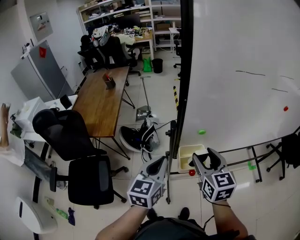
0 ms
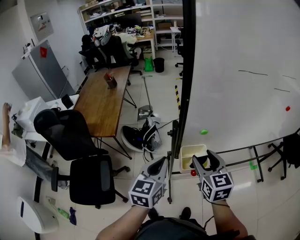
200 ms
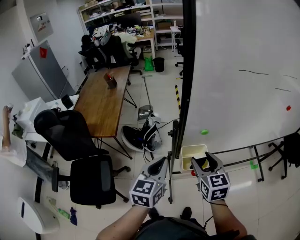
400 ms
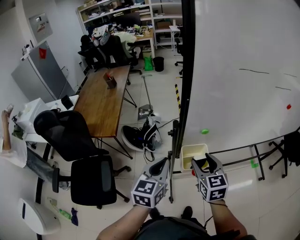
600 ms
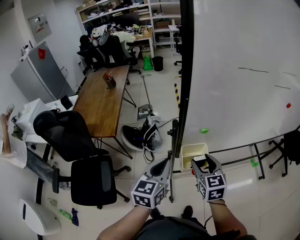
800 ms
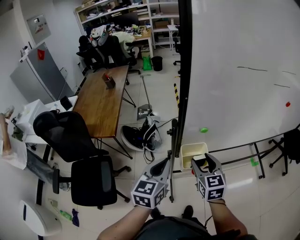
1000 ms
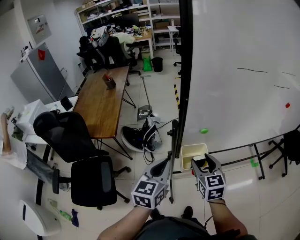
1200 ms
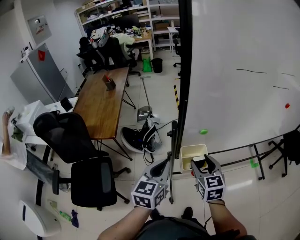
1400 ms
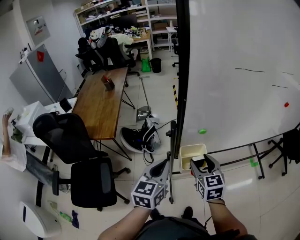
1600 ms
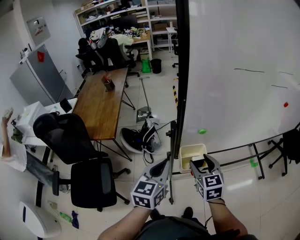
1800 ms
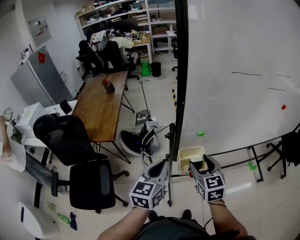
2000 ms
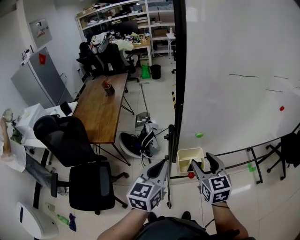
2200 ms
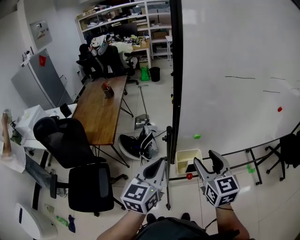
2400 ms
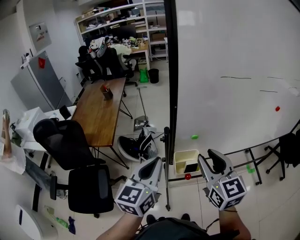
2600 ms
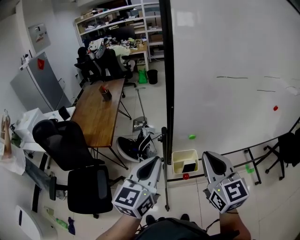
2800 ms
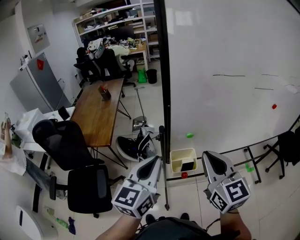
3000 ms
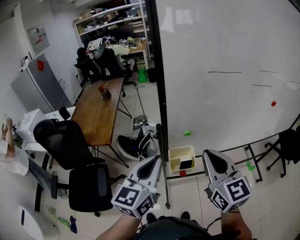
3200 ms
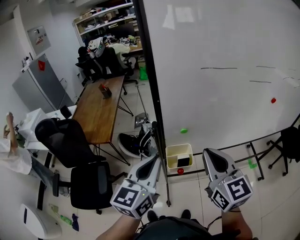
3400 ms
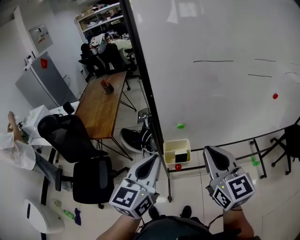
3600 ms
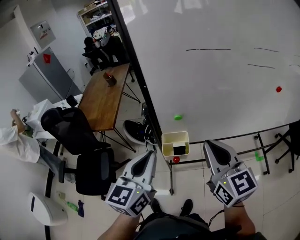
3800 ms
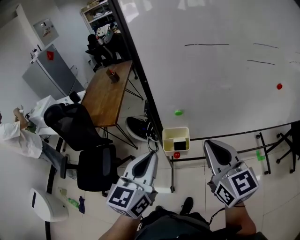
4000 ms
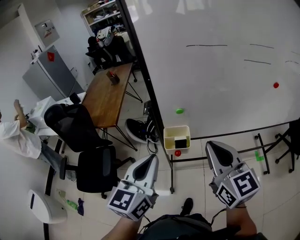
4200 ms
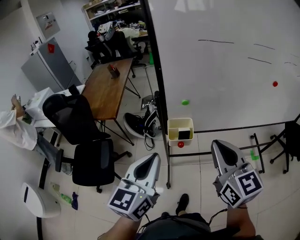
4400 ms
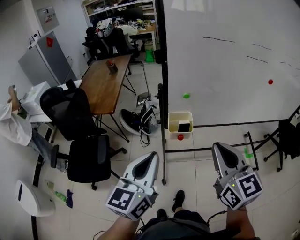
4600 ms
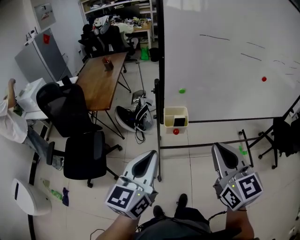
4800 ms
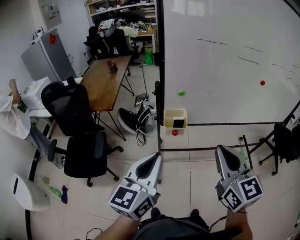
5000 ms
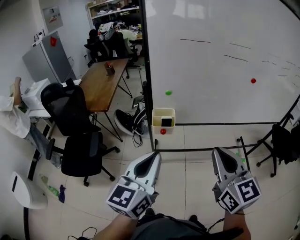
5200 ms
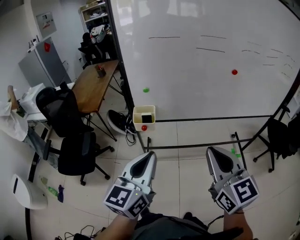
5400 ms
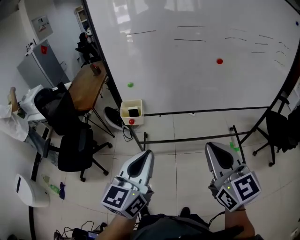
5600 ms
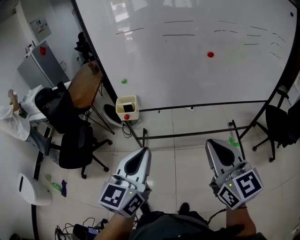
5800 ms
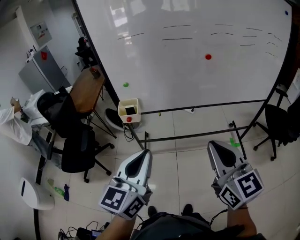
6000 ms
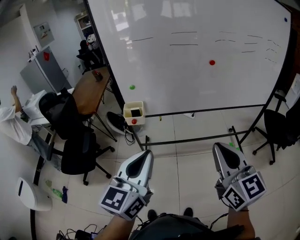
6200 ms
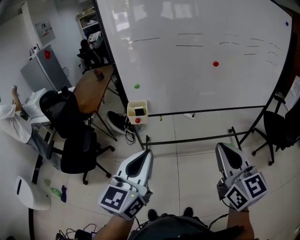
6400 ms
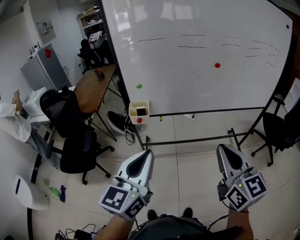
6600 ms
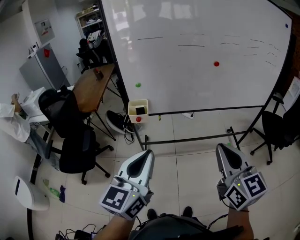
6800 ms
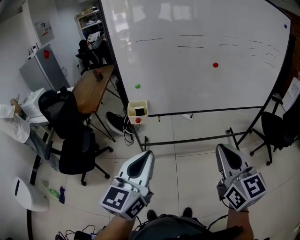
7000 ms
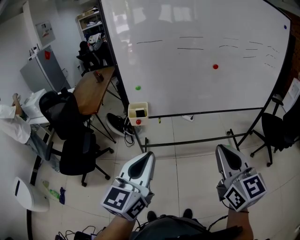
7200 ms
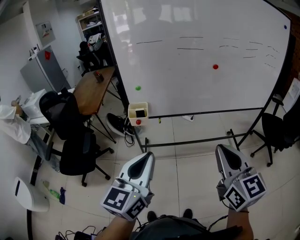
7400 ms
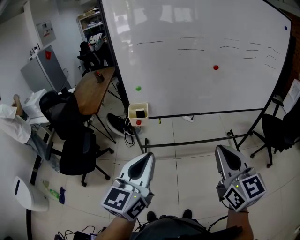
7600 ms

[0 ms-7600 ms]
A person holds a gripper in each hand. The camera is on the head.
0 ms to 1600 ms: The right gripper is displaced downward by about 10 cm.
1600 ms to 3000 ms: The left gripper heads upward, covering about 15 cm. The right gripper goes some 20 cm upward, swivels some 20 degrees, and closes its fingers.
3000 ms to 4600 ms: The left gripper shifts some 20 cm backward. The right gripper moves backward and to the right, approximately 20 cm.
4600 ms to 6000 ms: The two grippers travel together, to the right and backward, approximately 50 cm.
6000 ms to 7600 ms: The right gripper changes place by some 5 cm. Meanwhile the left gripper moves to the left, roughly 5 cm.

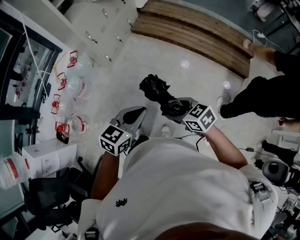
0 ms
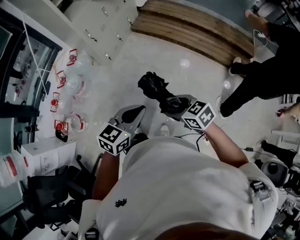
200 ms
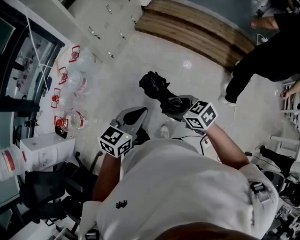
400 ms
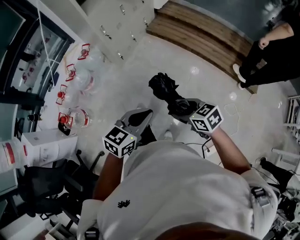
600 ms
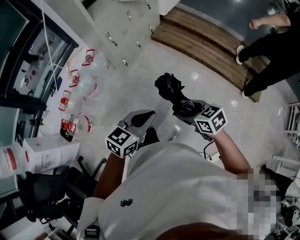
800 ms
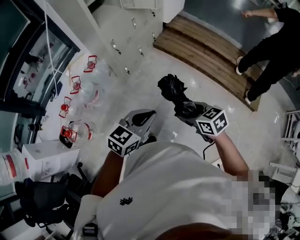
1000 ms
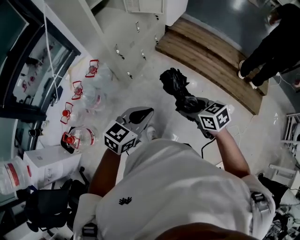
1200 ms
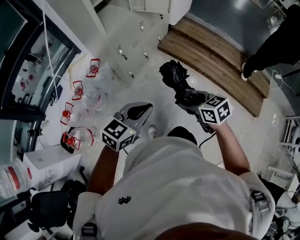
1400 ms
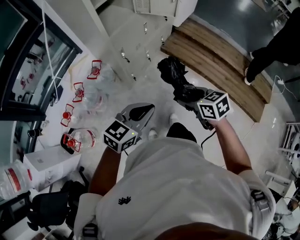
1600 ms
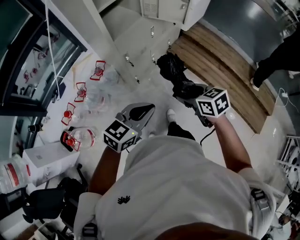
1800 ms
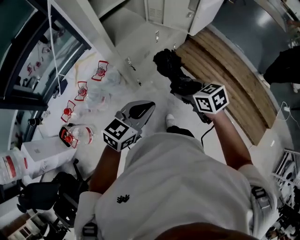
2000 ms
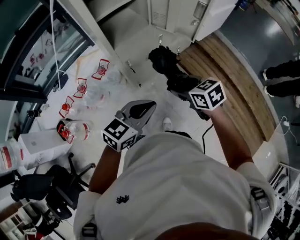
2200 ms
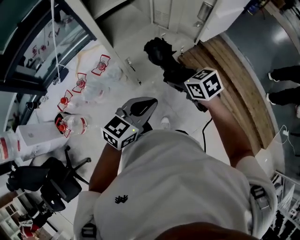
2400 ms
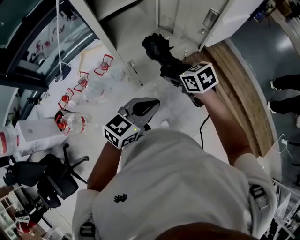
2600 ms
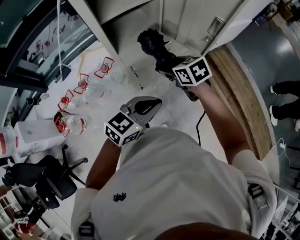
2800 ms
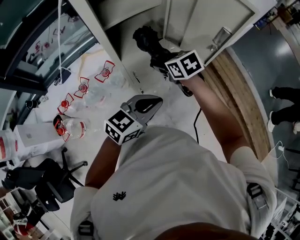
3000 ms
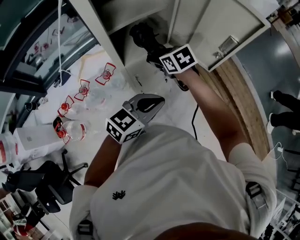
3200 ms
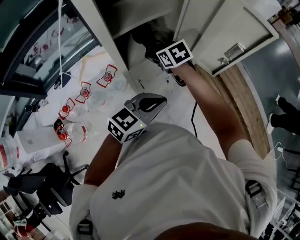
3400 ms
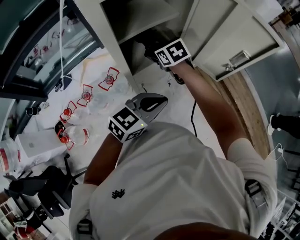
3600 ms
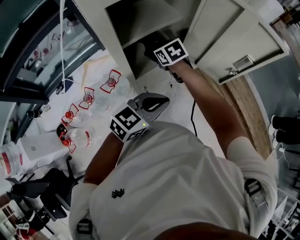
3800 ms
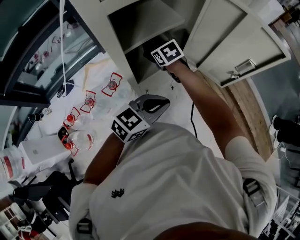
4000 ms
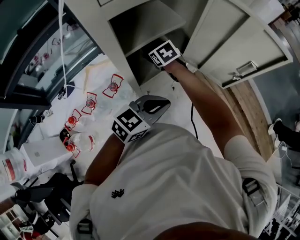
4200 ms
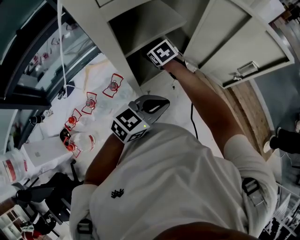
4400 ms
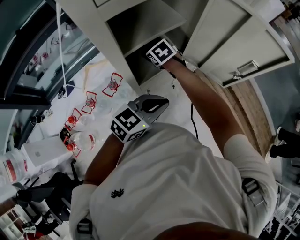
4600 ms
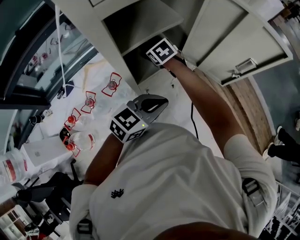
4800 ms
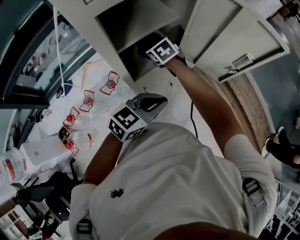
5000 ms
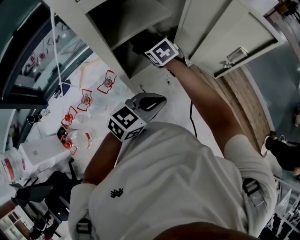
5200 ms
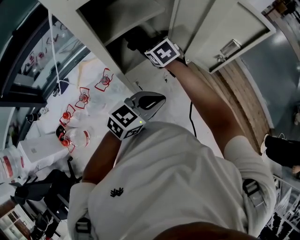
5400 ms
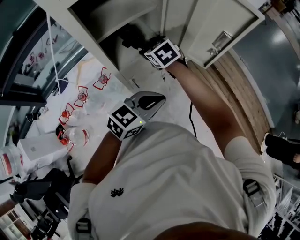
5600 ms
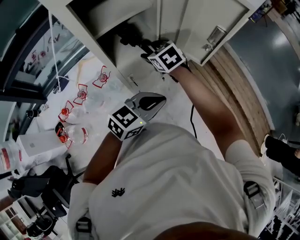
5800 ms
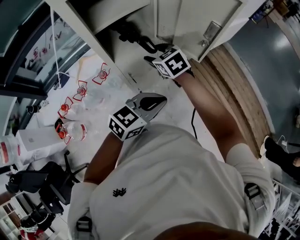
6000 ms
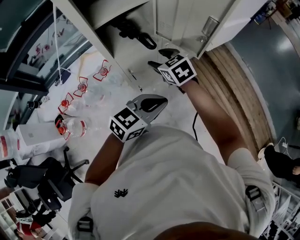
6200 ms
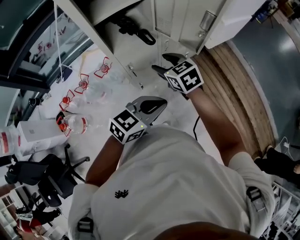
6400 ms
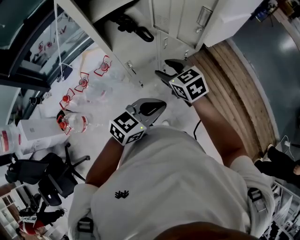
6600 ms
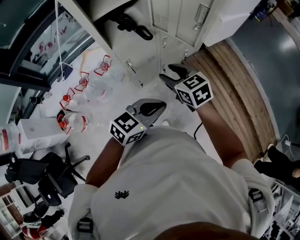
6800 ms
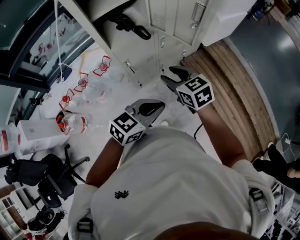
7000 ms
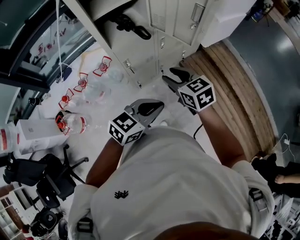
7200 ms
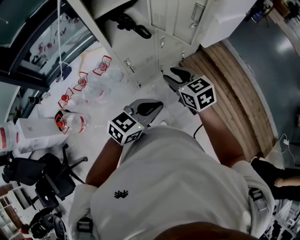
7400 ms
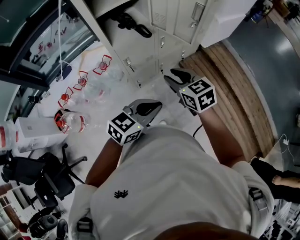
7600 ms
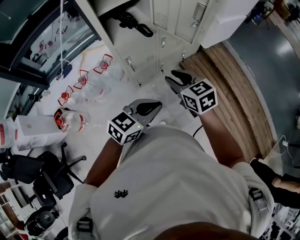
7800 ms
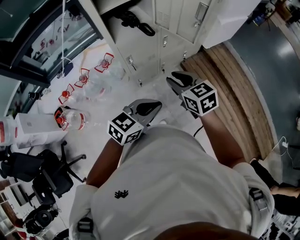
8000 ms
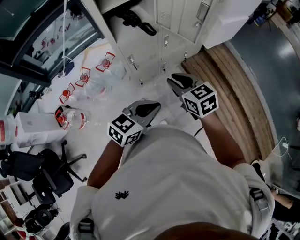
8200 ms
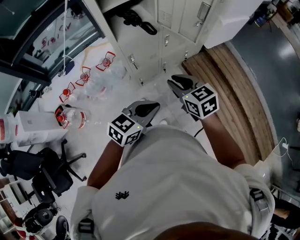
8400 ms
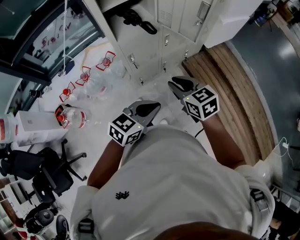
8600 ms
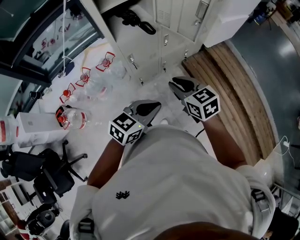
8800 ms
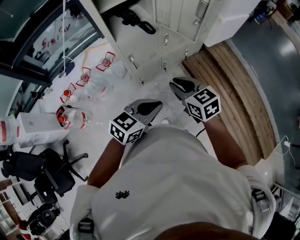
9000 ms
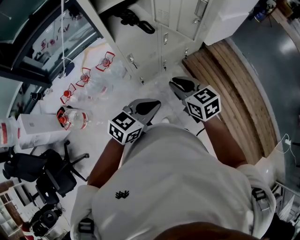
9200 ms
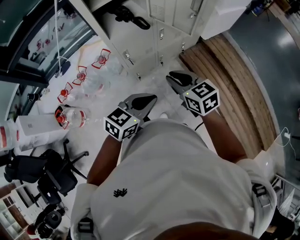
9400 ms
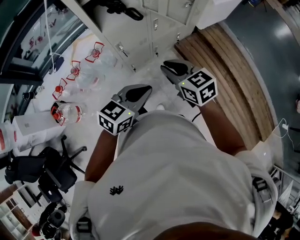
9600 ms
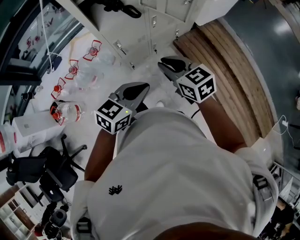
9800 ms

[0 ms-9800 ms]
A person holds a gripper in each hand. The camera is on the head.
0 ms to 1400 ms: The right gripper shifts roughly 35 cm forward. The left gripper heads forward and to the left, covering about 30 cm.
1400 ms to 2800 ms: The left gripper heads forward, covering roughly 30 cm; the right gripper travels forward by about 40 cm, and turns by some 30 degrees.
2800 ms to 4200 ms: The right gripper is displaced forward and to the left by about 30 cm; the left gripper goes roughly 15 cm forward and to the left.
4200 ms to 5600 ms: The right gripper goes some 15 cm to the right, backward and upward, while the left gripper goes about 10 cm to the right.
5600 ms to 7000 ms: The left gripper goes roughly 15 cm backward and to the right. Meanwhile the right gripper shifts roughly 30 cm backward and to the right.
7000 ms to 8400 ms: The left gripper shifts by some 5 cm. Meanwhile the right gripper is displaced backward by roughly 5 cm, and closes its fingers.
8400 ms to 9800 ms: The grippers move only a little.

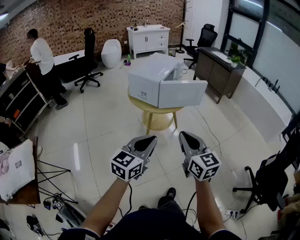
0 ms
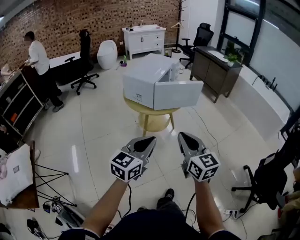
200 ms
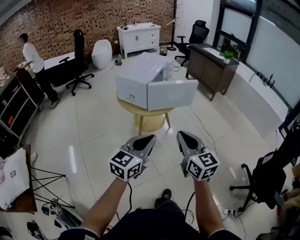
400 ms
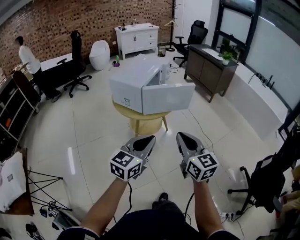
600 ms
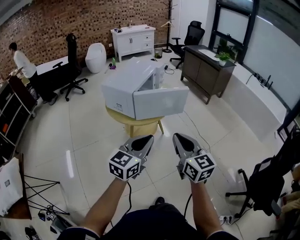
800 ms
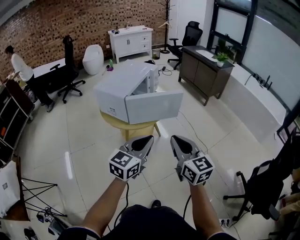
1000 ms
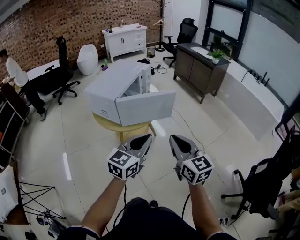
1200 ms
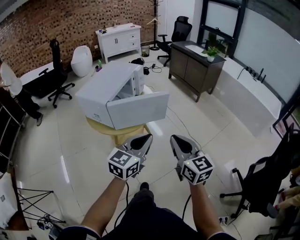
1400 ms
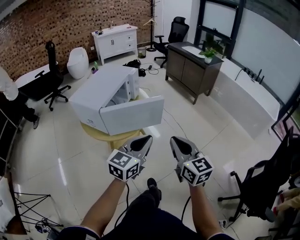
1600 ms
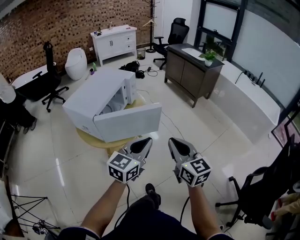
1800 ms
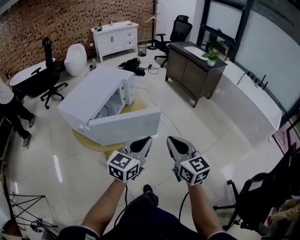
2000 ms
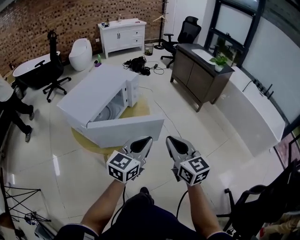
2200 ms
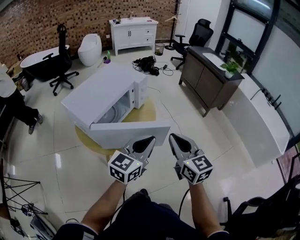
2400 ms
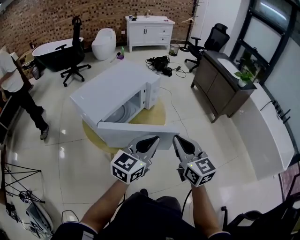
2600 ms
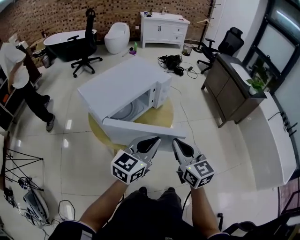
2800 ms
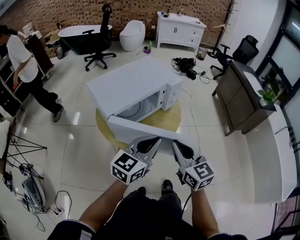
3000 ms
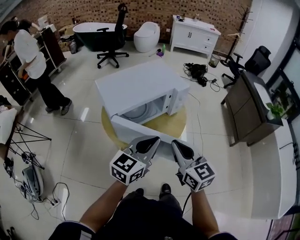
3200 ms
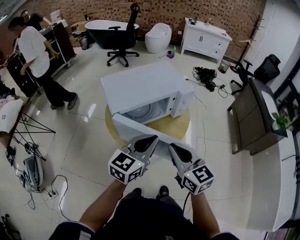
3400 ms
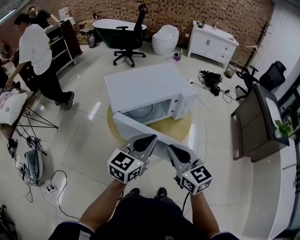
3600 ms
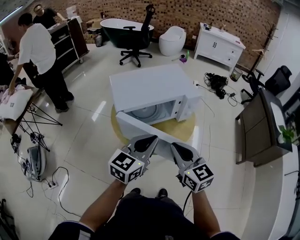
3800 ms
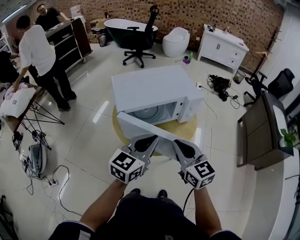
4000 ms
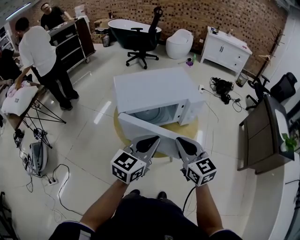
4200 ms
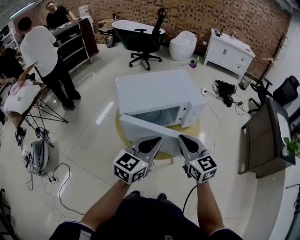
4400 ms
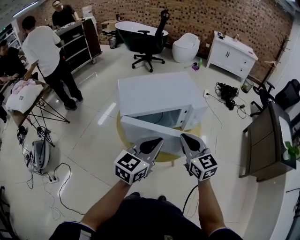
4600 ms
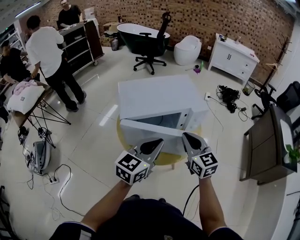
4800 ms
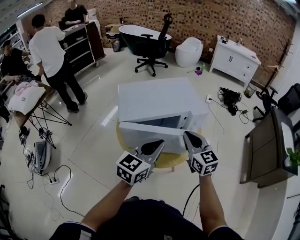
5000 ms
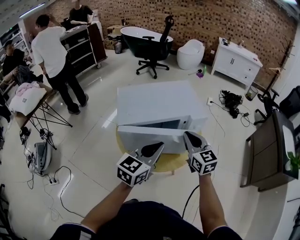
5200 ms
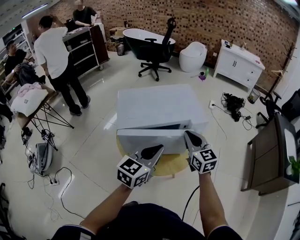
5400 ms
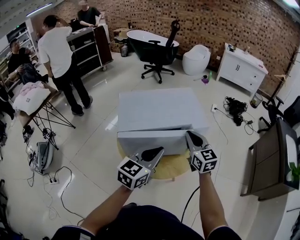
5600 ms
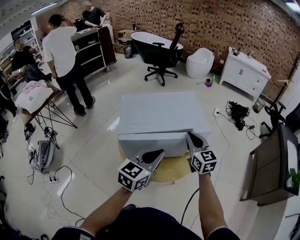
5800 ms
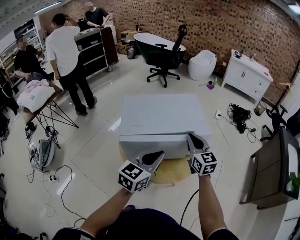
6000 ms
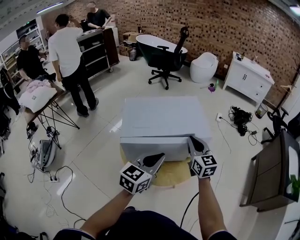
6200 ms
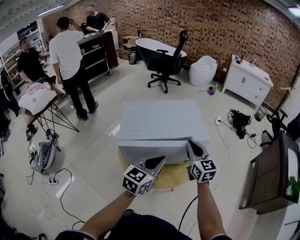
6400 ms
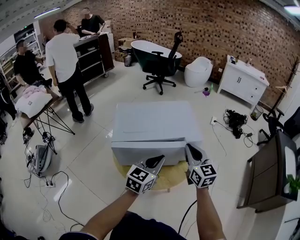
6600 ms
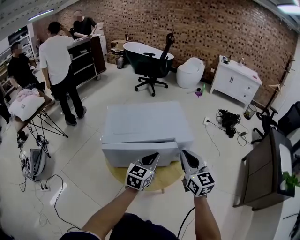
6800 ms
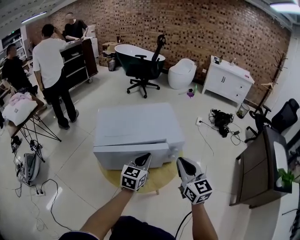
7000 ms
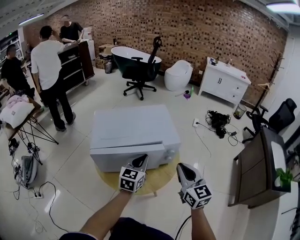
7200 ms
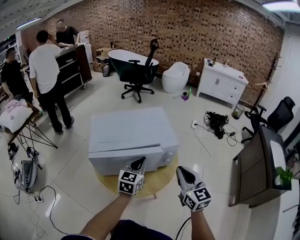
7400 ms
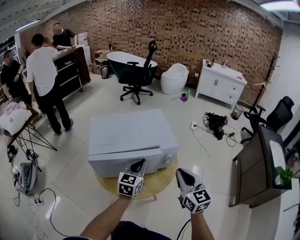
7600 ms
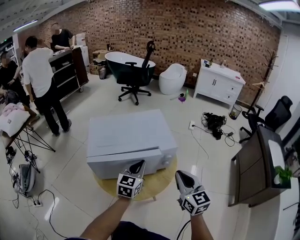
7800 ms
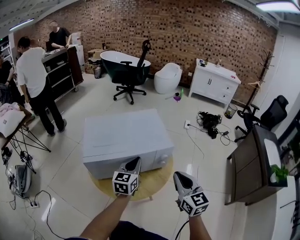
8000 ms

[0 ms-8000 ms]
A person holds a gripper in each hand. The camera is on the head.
0 ms to 1600 ms: The two grippers go approximately 30 cm forward and to the right.
1600 ms to 3200 ms: The left gripper ends up about 20 cm from where it was, and swivels some 30 degrees; the right gripper moves roughly 25 cm, and changes its angle by approximately 40 degrees.
3200 ms to 4800 ms: The right gripper travels forward by about 15 cm. The left gripper travels forward by about 5 cm.
4800 ms to 6400 ms: The left gripper travels forward by some 5 cm, while the right gripper moves forward, about 10 cm.
6400 ms to 8000 ms: The right gripper heads backward and to the right, covering some 15 cm. Meanwhile the left gripper is displaced forward by about 10 cm.
